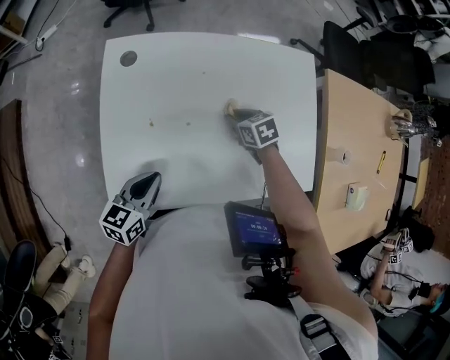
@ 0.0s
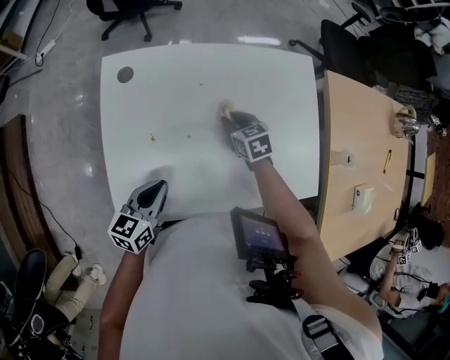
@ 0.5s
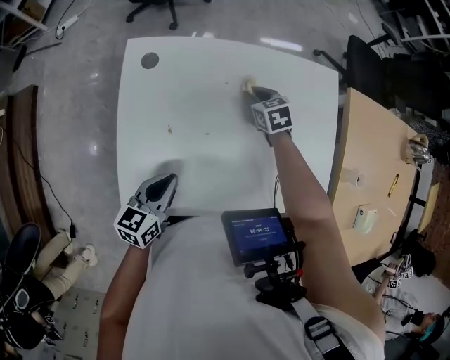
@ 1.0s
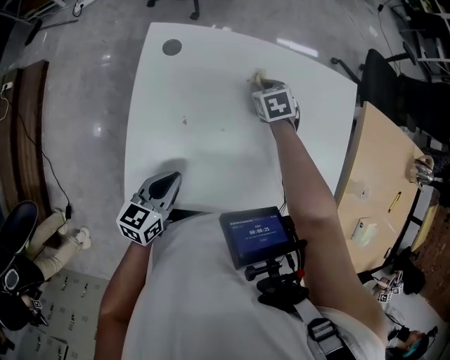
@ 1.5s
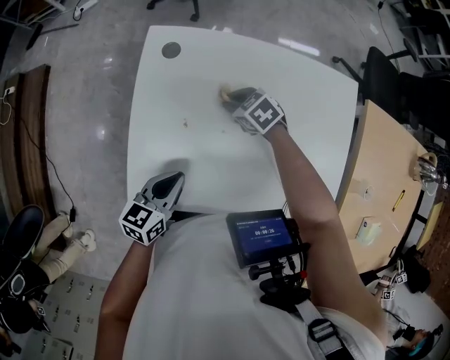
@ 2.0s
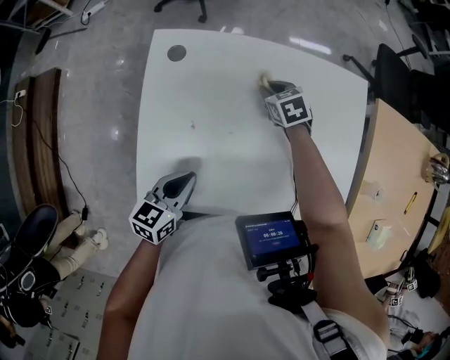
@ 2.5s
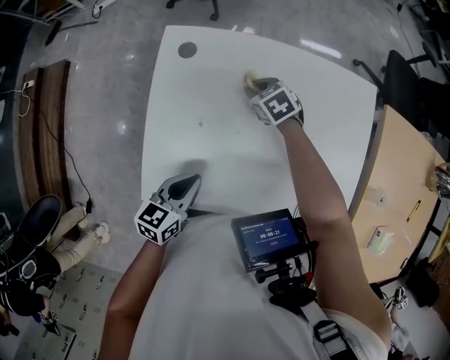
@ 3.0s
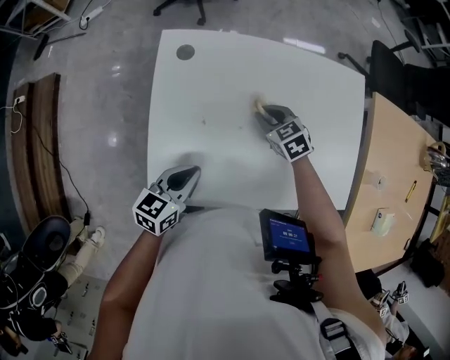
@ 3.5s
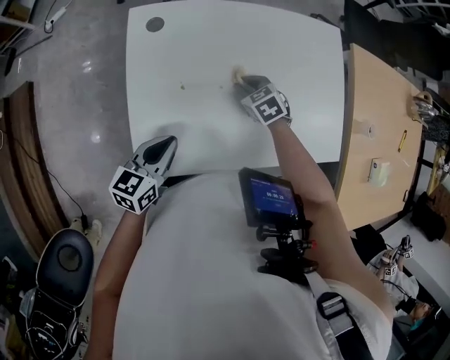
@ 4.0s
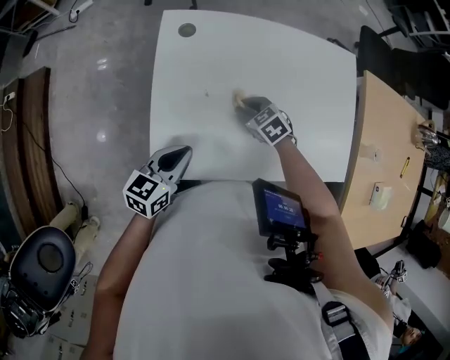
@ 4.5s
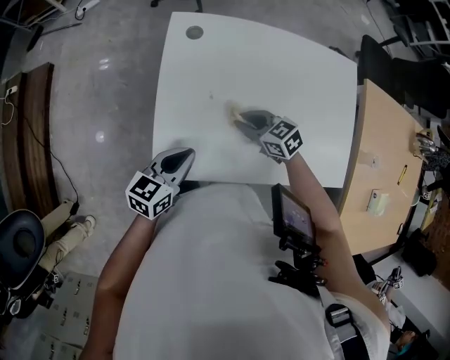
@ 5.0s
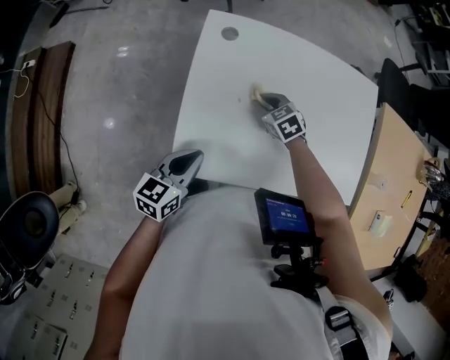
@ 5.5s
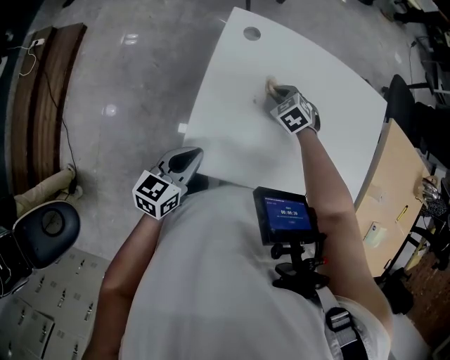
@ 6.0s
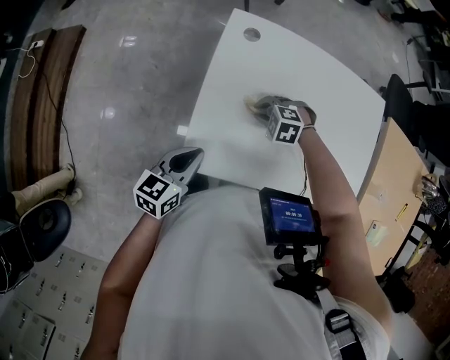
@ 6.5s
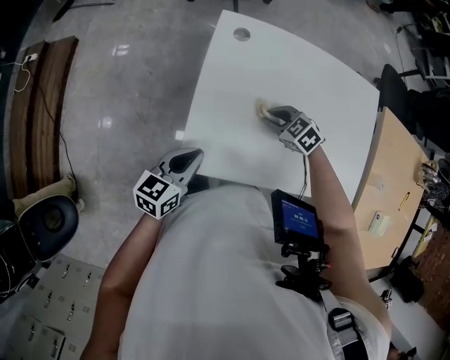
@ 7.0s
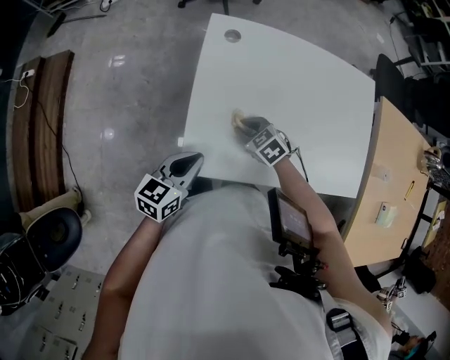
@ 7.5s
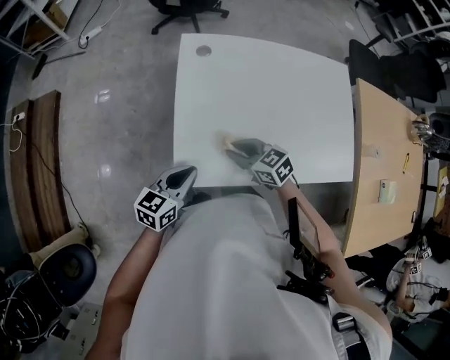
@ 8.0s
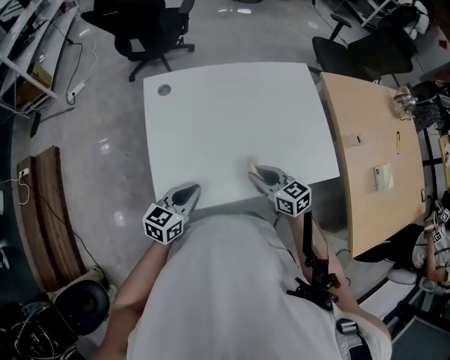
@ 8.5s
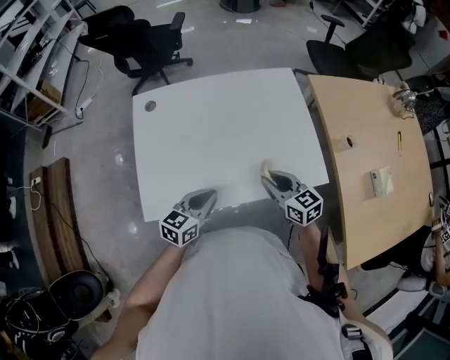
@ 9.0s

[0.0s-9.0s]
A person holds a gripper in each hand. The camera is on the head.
0.0s to 2.0s: The right gripper is displaced to the left by some 15 cm, and rotates some 30 degrees.
2.0s to 4.5s: The left gripper moves about 5 cm. The right gripper is displaced backward by about 10 cm.
4.5s to 7.0s: The right gripper moves roughly 10 cm forward and comes back; the left gripper is displaced to the left by roughly 5 cm.
7.0s to 9.0s: The left gripper moves about 25 cm, and changes its angle by approximately 20 degrees. The right gripper changes place by roughly 30 cm, and points its fingers some 30 degrees further upward.

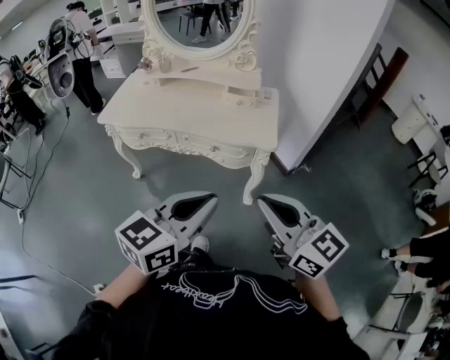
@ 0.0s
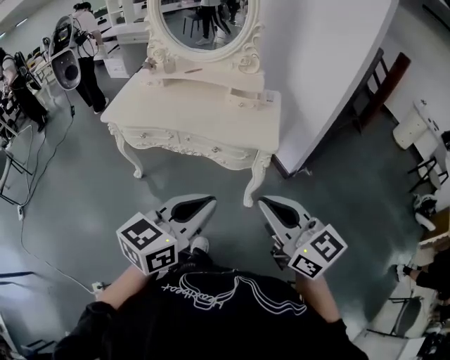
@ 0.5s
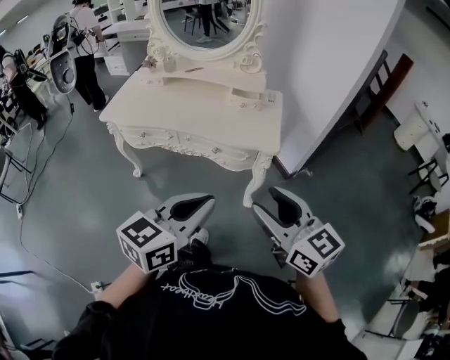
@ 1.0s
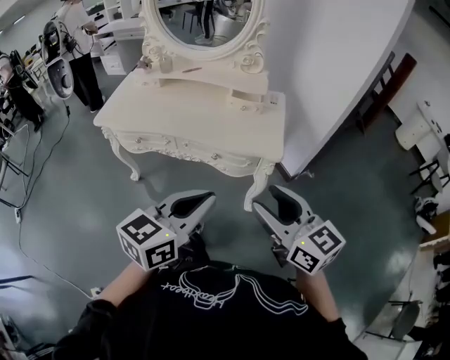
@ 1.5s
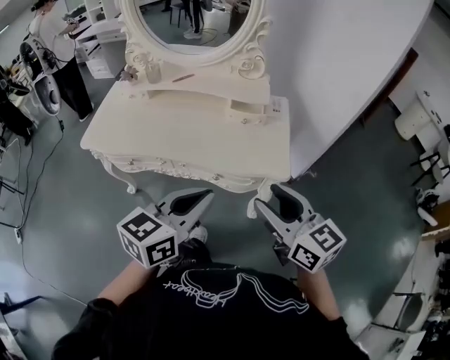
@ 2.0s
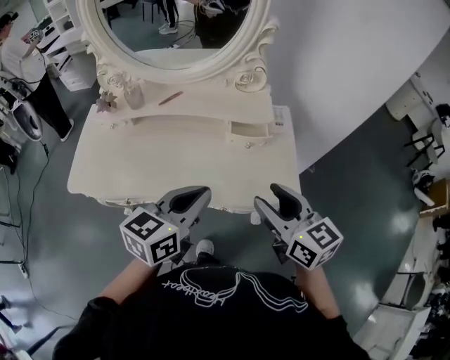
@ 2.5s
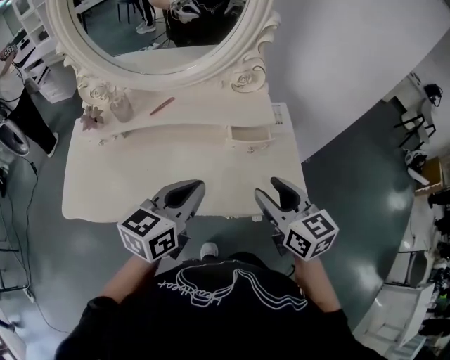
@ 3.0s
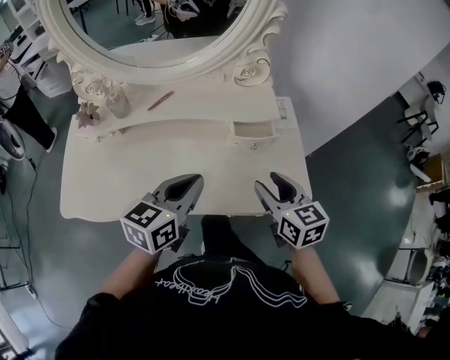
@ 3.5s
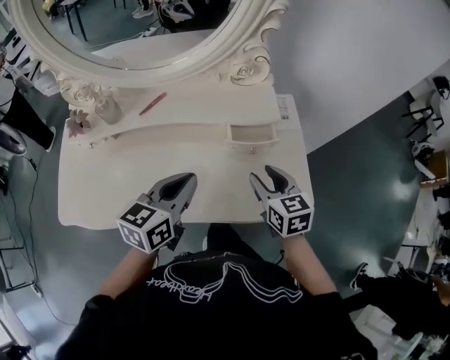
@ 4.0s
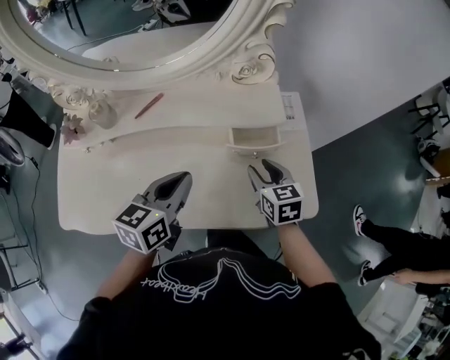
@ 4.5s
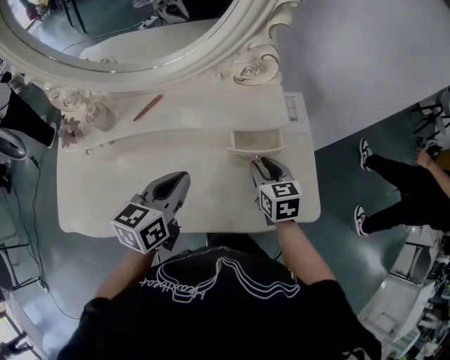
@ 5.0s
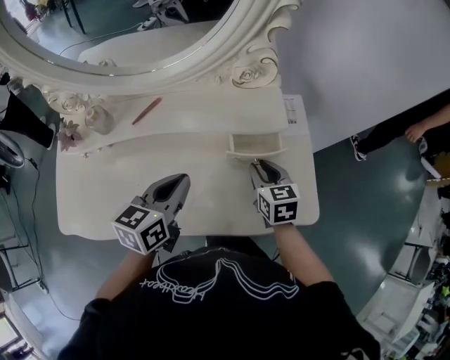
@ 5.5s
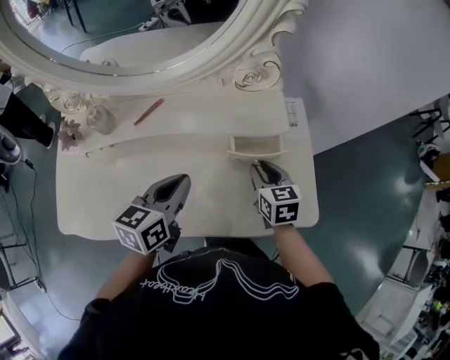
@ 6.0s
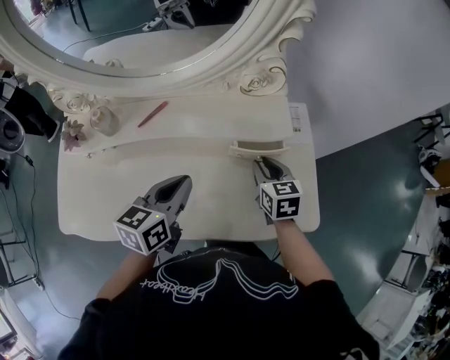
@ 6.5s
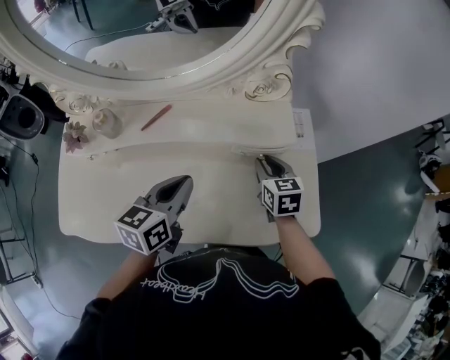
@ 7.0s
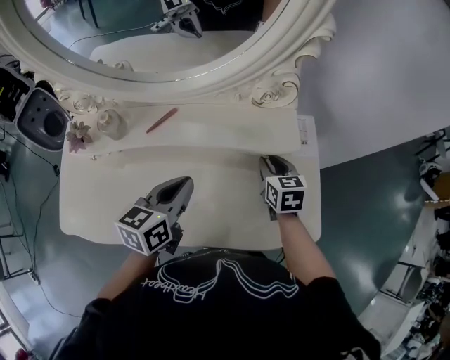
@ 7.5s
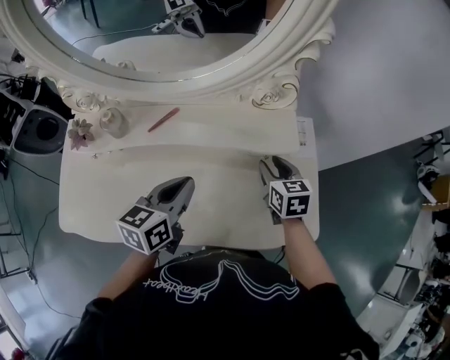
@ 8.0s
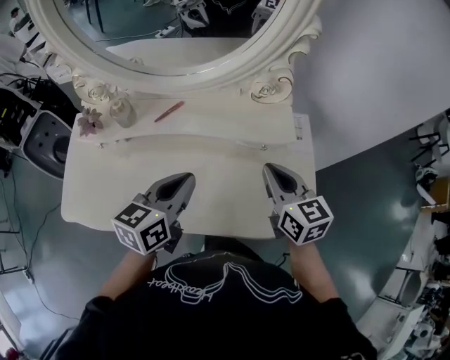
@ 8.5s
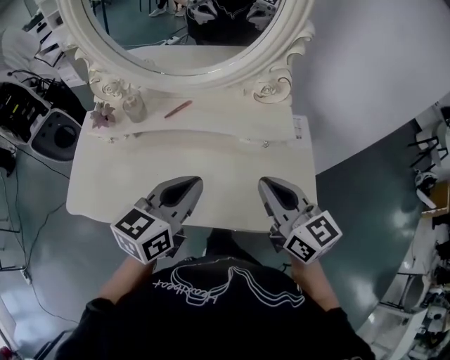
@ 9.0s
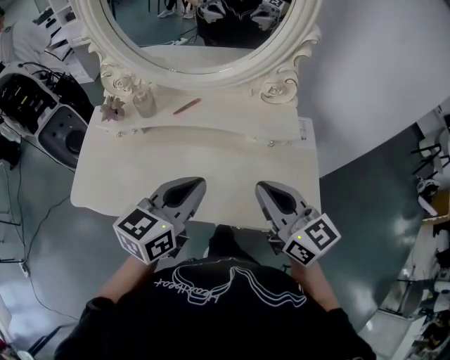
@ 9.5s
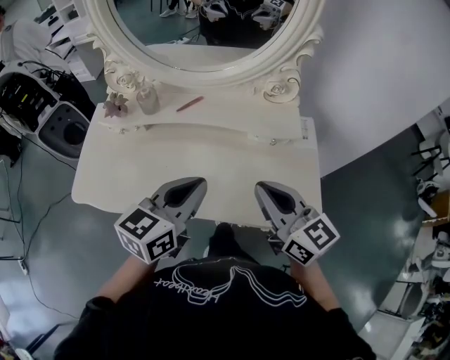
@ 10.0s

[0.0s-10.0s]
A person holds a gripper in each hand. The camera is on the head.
0.0s to 2.0s: The grippers both shift forward by some 20 cm. The right gripper opens.
2.0s to 4.0s: The left gripper goes about 30 cm forward and to the left; the right gripper is displaced forward and downward by some 35 cm, and rotates roughly 30 degrees.
4.0s to 6.0s: The left gripper changes place by some 5 cm; the right gripper goes about 10 cm forward and downward, and closes its fingers.
6.0s to 8.0s: The right gripper is displaced forward by some 5 cm.
8.0s to 10.0s: The left gripper goes some 15 cm backward and upward; the right gripper shifts about 30 cm backward, upward and to the left, tilts its fingers about 30 degrees upward, and closes up.

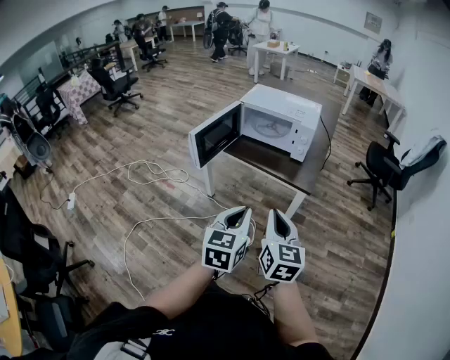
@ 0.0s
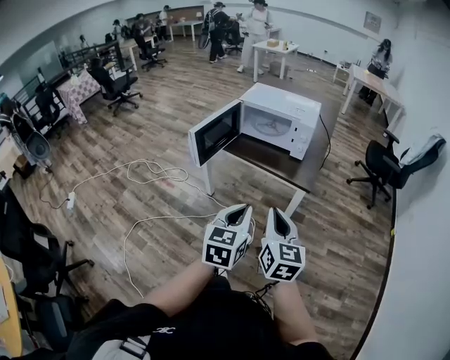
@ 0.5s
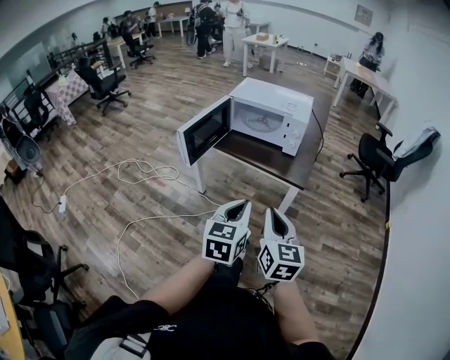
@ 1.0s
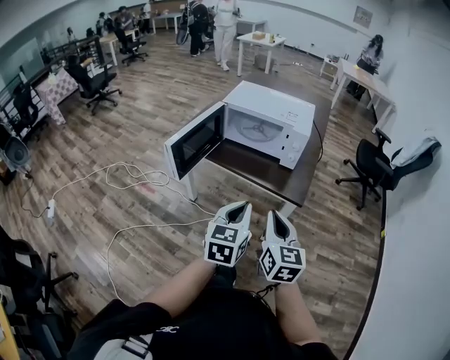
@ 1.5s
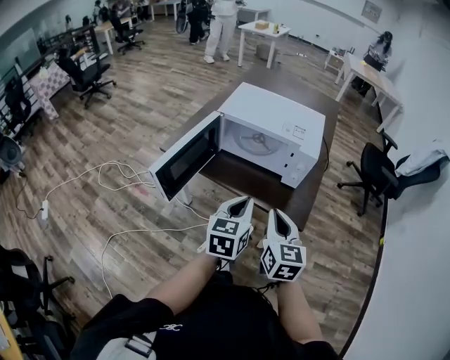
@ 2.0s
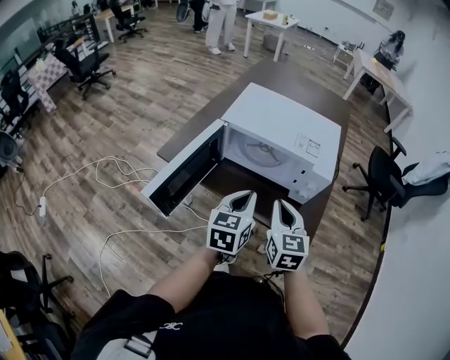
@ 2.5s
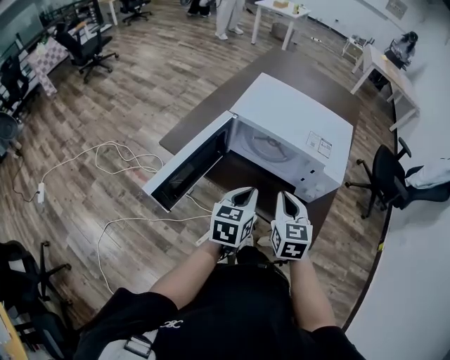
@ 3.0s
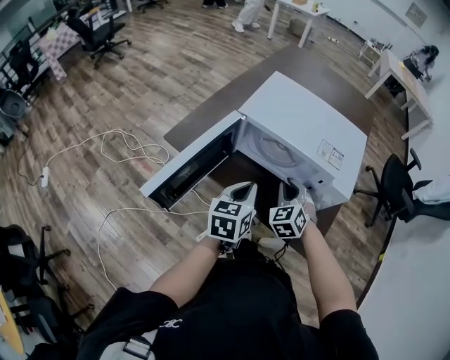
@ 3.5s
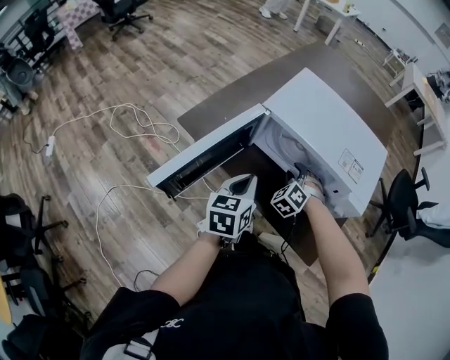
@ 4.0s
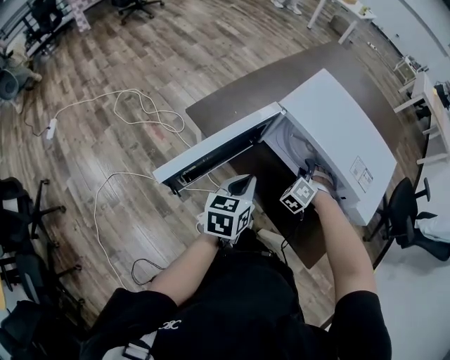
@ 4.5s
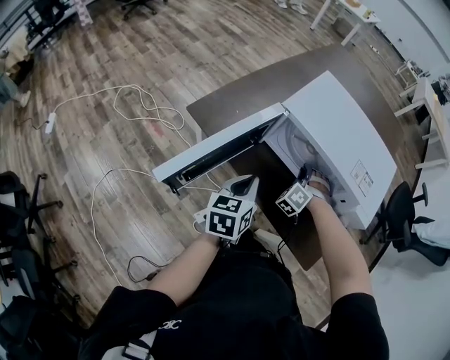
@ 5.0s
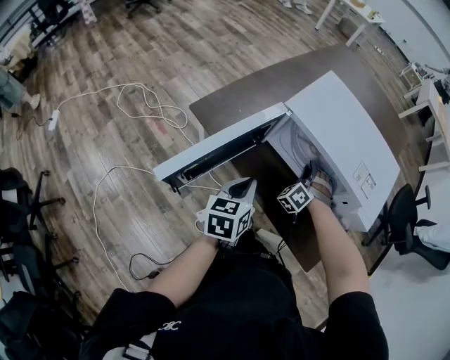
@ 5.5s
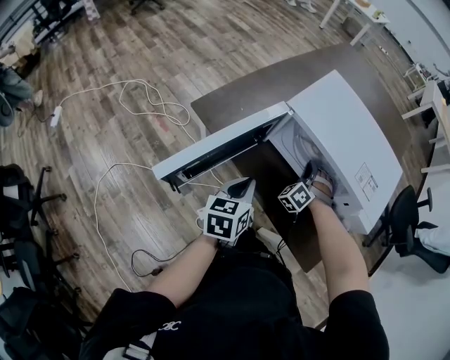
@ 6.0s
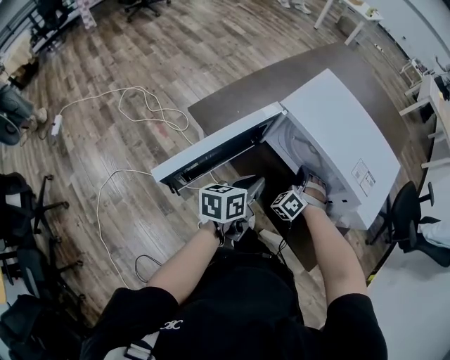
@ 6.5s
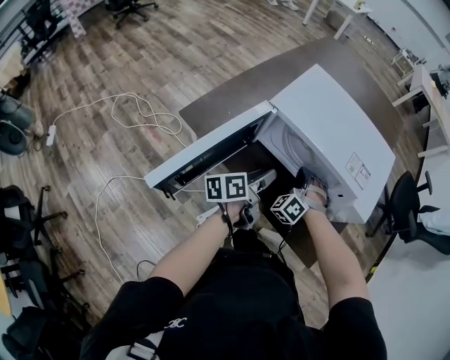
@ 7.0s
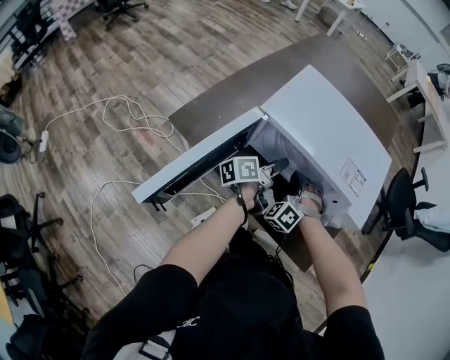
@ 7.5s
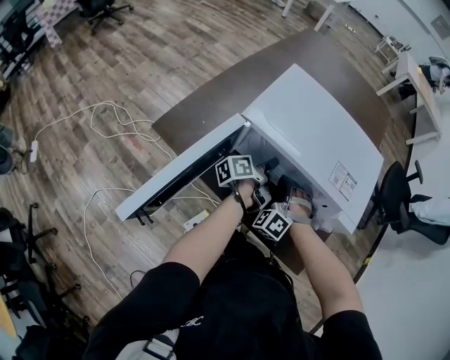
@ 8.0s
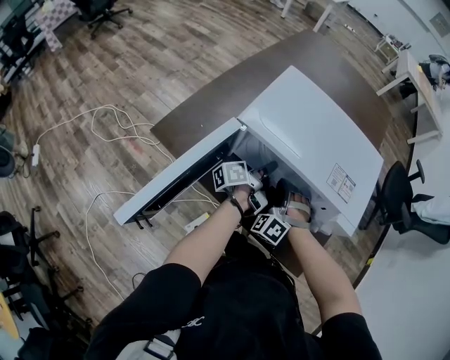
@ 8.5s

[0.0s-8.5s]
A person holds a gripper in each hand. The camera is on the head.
0.0s to 2.0s: Both grippers move forward, approximately 30 cm.
2.0s to 4.0s: The left gripper moves forward, to the left and downward, approximately 25 cm, and swivels roughly 20 degrees. Meanwhile the right gripper travels forward and downward by approximately 40 cm, rolls counterclockwise, seen from behind, by some 70 degrees, and opens.
4.0s to 6.5s: The right gripper rotates roughly 20 degrees, and closes up, while the left gripper turns by some 20 degrees.
6.5s to 8.5s: The left gripper shifts some 20 cm forward and downward, changes its angle by roughly 40 degrees, and opens, then closes again.
